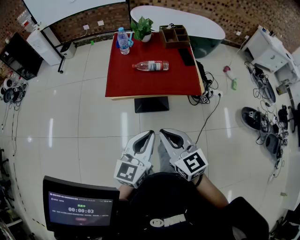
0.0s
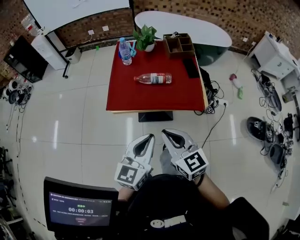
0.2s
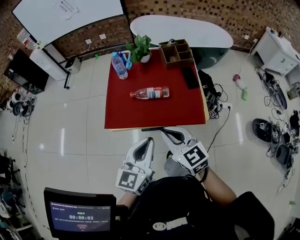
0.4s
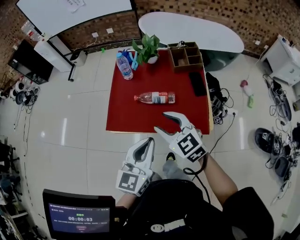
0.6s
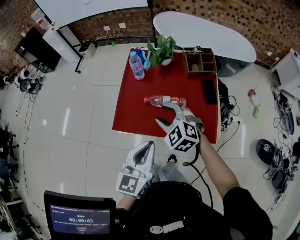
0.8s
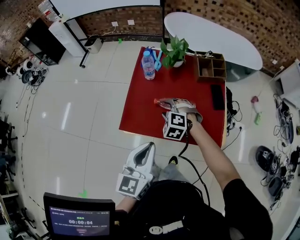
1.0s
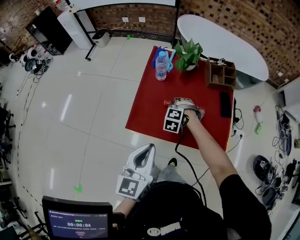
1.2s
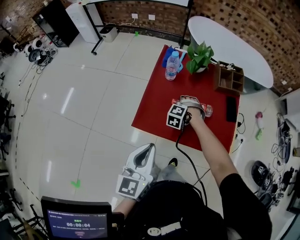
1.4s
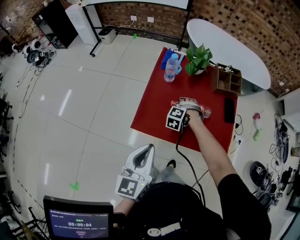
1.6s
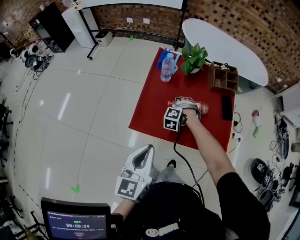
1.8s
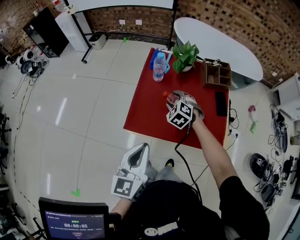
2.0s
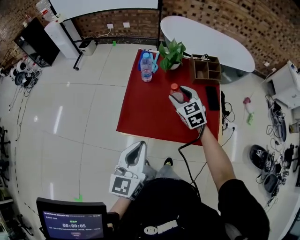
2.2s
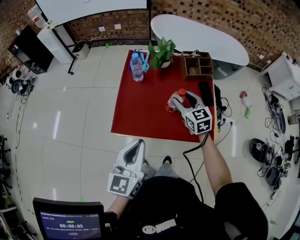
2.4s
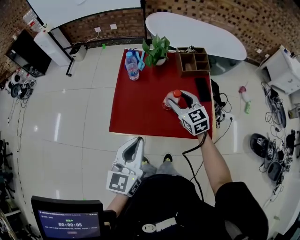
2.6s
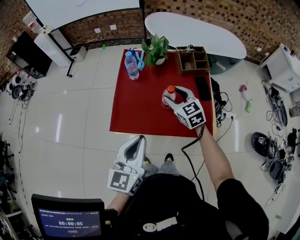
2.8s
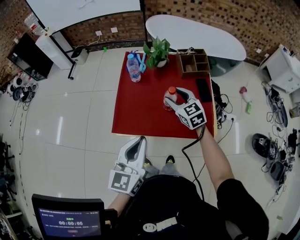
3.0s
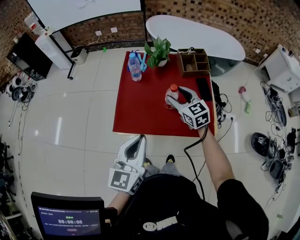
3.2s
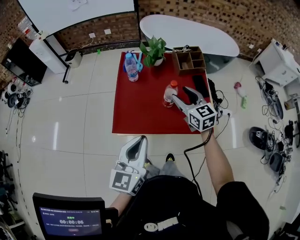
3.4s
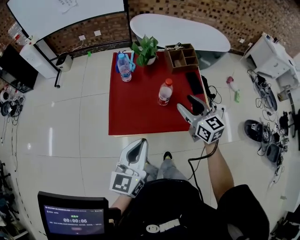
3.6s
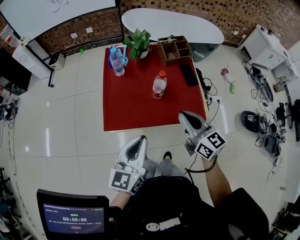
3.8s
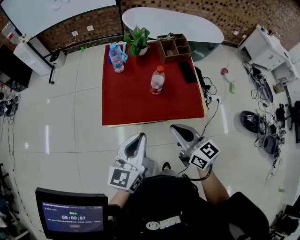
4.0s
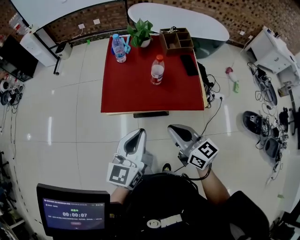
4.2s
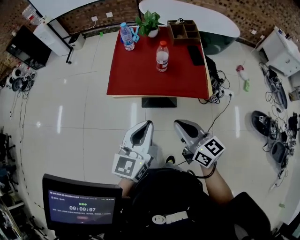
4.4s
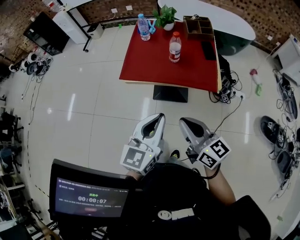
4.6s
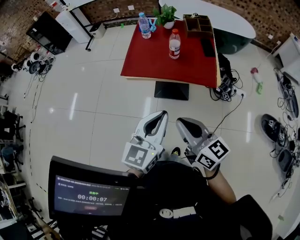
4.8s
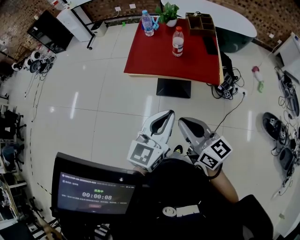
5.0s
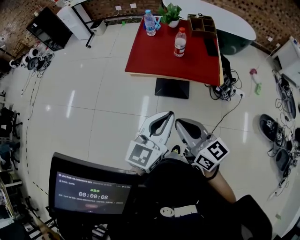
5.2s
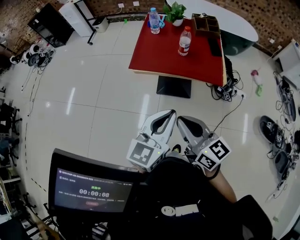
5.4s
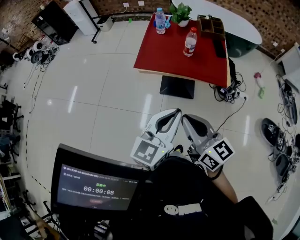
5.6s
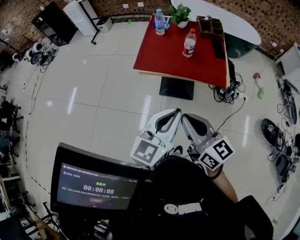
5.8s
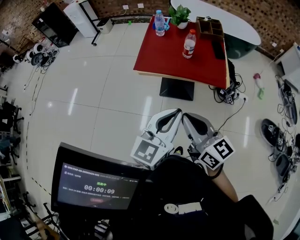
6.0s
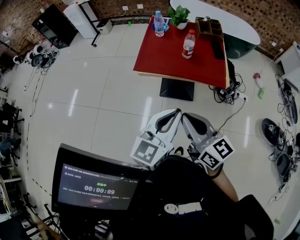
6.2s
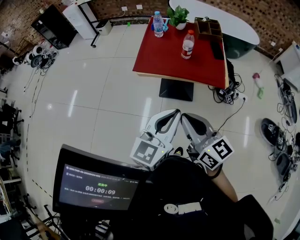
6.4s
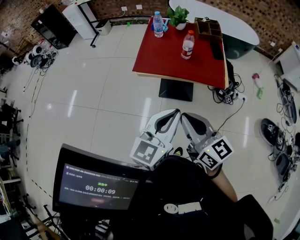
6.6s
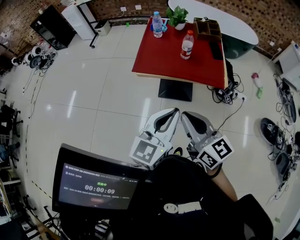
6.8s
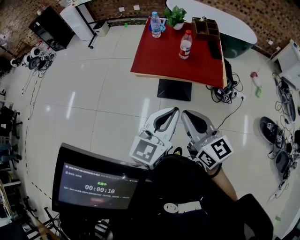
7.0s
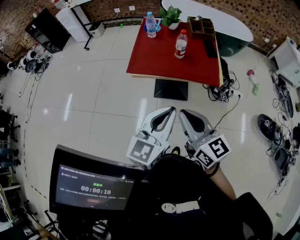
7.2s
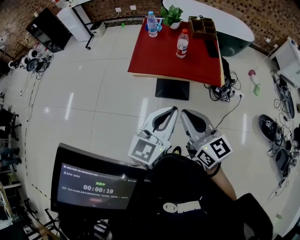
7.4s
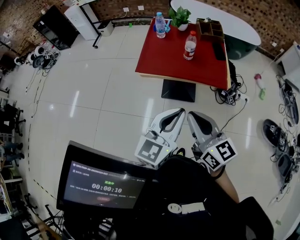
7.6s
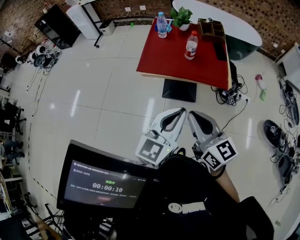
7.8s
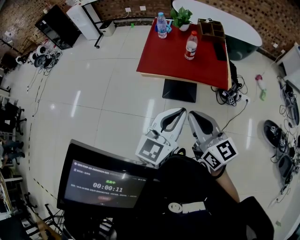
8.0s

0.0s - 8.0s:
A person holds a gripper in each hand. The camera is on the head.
0.0s - 1.6s: The right gripper goes about 50 cm forward and downward, points its fingers roughly 50 degrees further downward, and opens up. The left gripper is displaced forward and to the left by roughly 25 cm, and swivels roughly 20 degrees.
1.6s - 3.2s: The left gripper moves to the right, approximately 5 cm. Meanwhile the right gripper shifts approximately 25 cm upward and to the right, and tilts its fingers about 40 degrees upward.
3.2s - 4.8s: The right gripper goes some 40 cm backward, rotates roughly 30 degrees, and closes. Meanwhile the left gripper is displaced backward by about 25 cm.
4.8s - 6.4s: The right gripper heads to the left, covering about 5 cm.
6.4s - 8.0s: There are only small adjustments of the grippers.

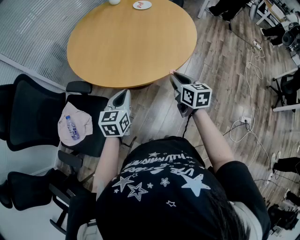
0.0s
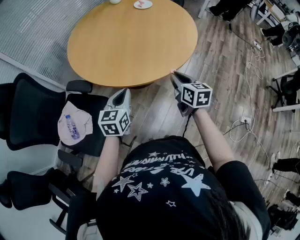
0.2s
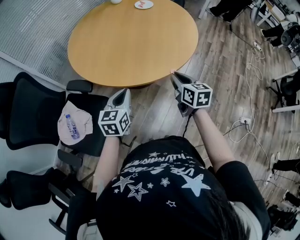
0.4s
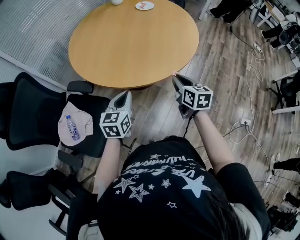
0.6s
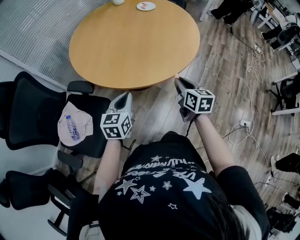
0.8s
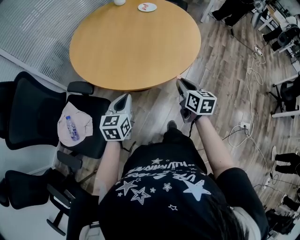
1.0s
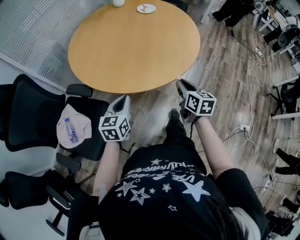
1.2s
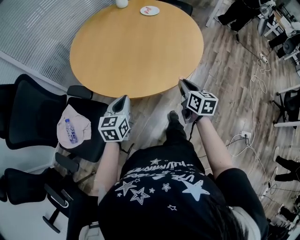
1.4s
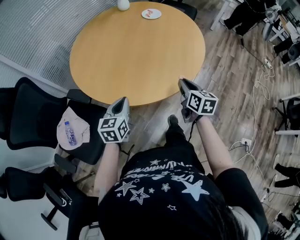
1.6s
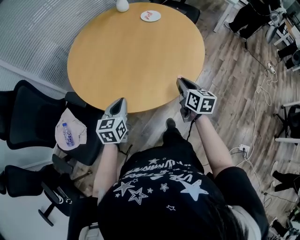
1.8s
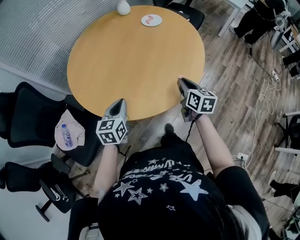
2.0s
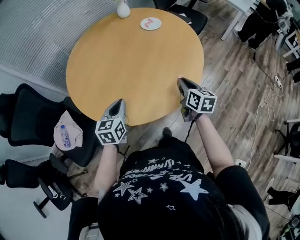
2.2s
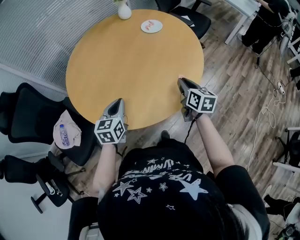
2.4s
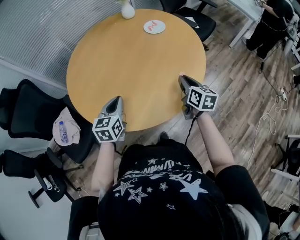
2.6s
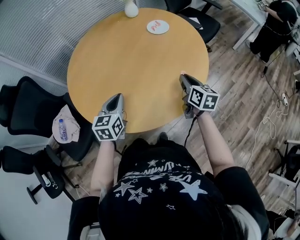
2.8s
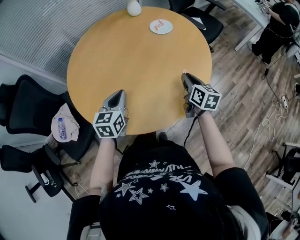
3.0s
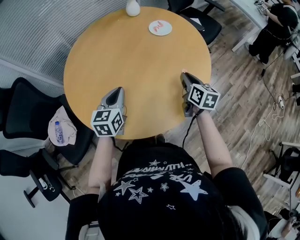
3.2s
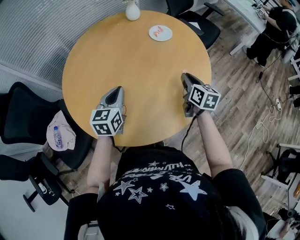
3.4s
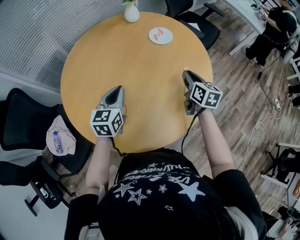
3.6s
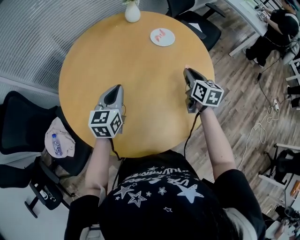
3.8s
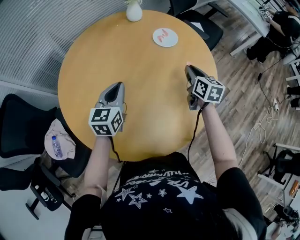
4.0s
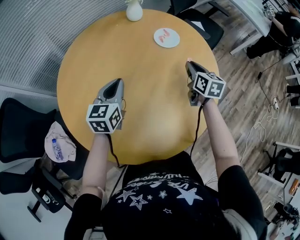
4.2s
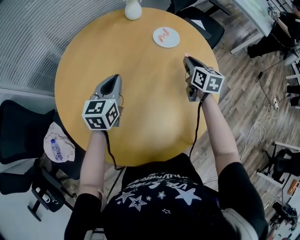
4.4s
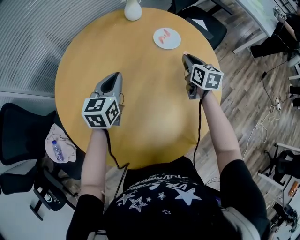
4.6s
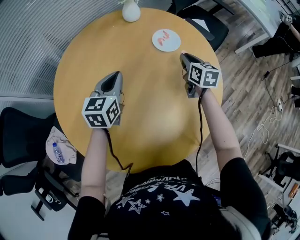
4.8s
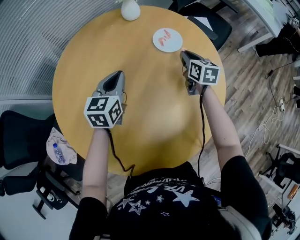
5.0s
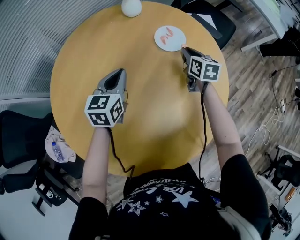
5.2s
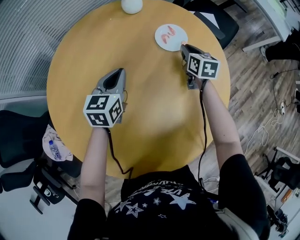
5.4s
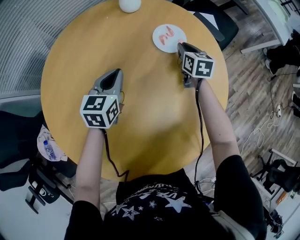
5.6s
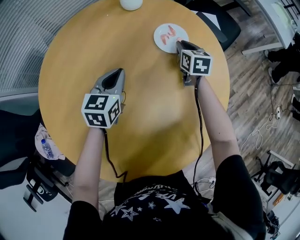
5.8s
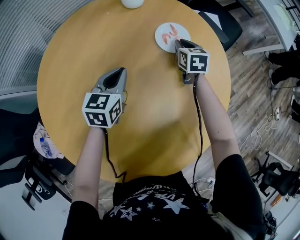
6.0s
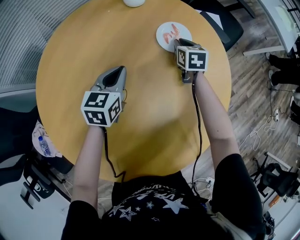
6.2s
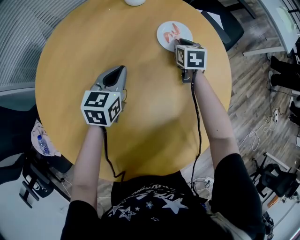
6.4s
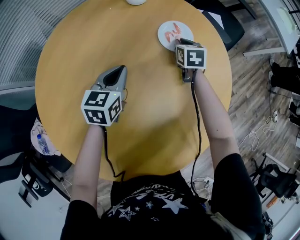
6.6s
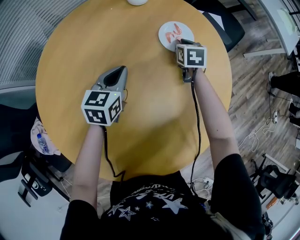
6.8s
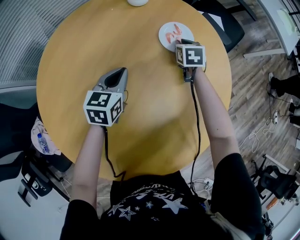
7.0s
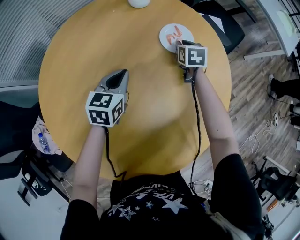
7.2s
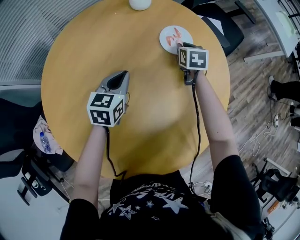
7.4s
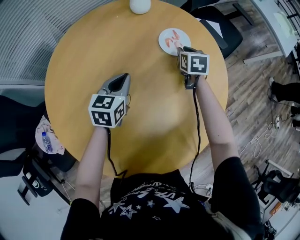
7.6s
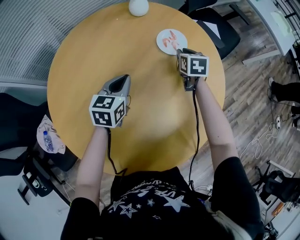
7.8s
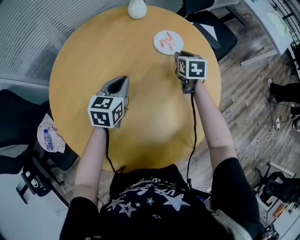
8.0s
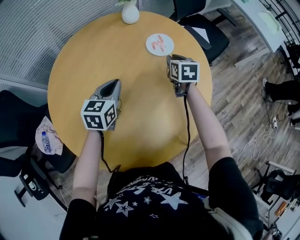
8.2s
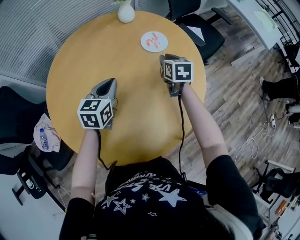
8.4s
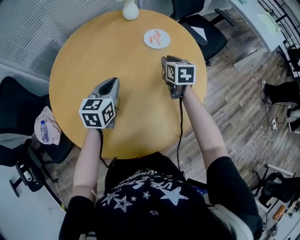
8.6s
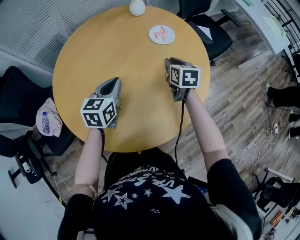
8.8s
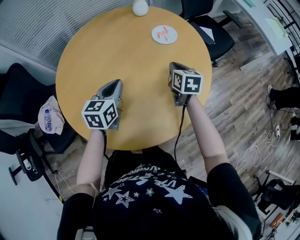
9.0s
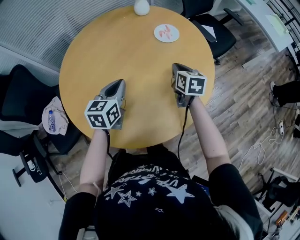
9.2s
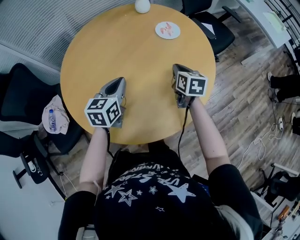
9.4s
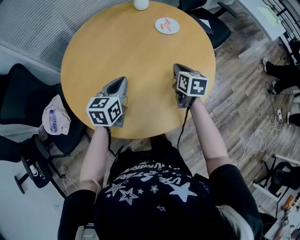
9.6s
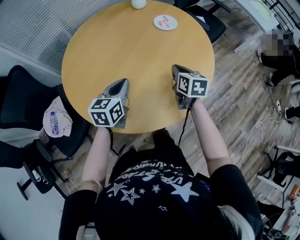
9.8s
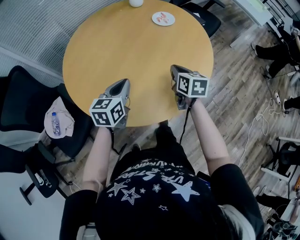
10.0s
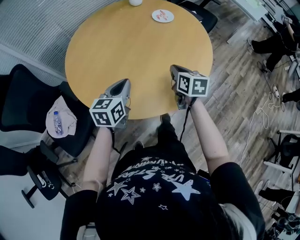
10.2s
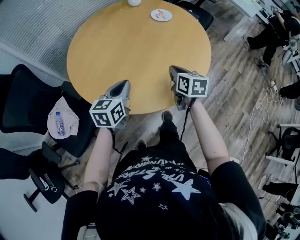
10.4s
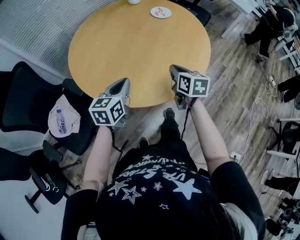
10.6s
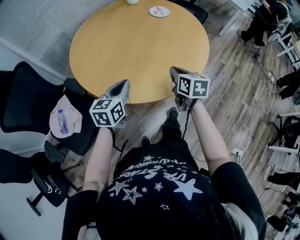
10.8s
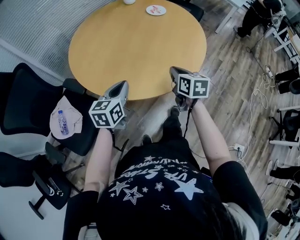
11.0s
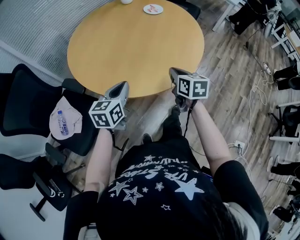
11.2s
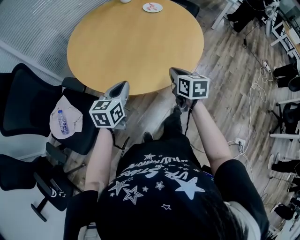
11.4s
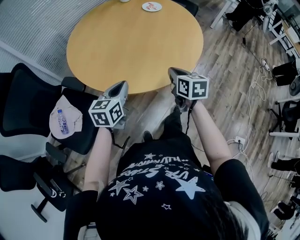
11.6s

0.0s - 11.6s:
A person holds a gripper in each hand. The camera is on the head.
0.0s - 1.4s: The right gripper travels forward by approximately 5 cm.
1.4s - 2.8s: The two grippers go approximately 25 cm forward and to the right.
2.8s - 4.4s: Both grippers move forward, approximately 25 cm.
4.4s - 5.8s: The two grippers go approximately 20 cm forward and downward.
5.8s - 7.2s: The grippers stay close to where they were, moving slightly.
7.2s - 8.8s: Both grippers travel together backward and upward, approximately 25 cm.
8.8s - 10.2s: The right gripper heads backward, covering roughly 25 cm, while the left gripper travels backward and to the left by approximately 20 cm.
10.2s - 11.6s: Both grippers travel together backward, roughly 15 cm.

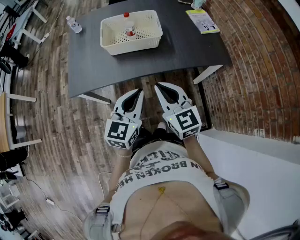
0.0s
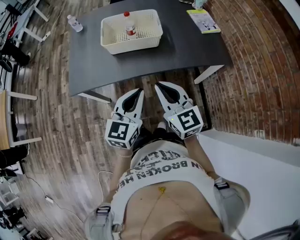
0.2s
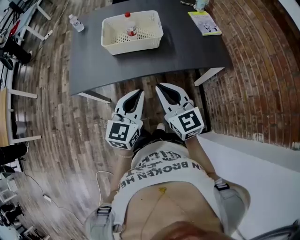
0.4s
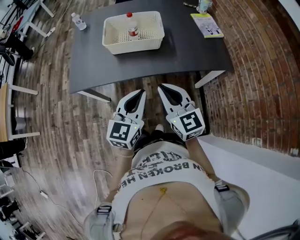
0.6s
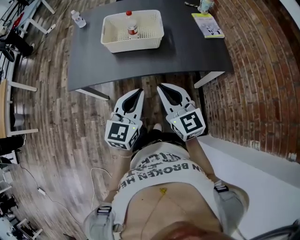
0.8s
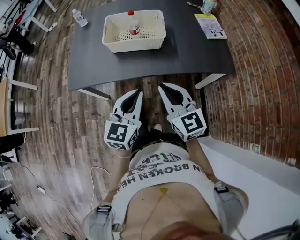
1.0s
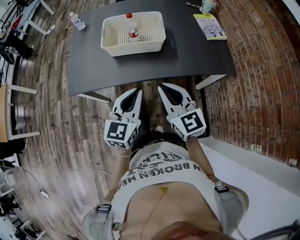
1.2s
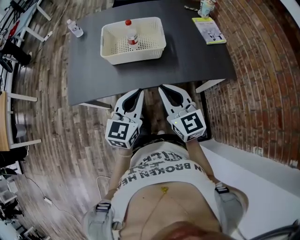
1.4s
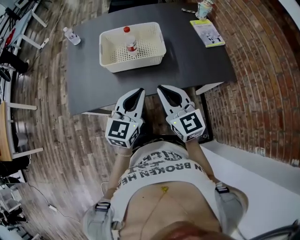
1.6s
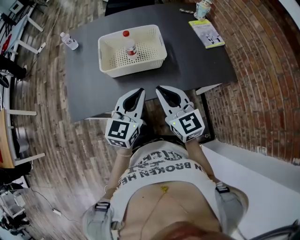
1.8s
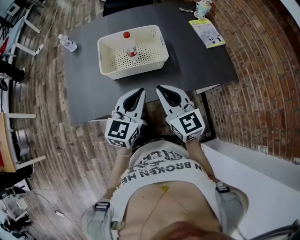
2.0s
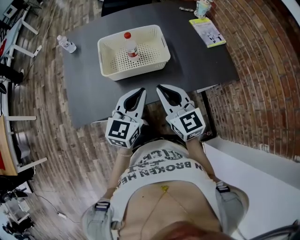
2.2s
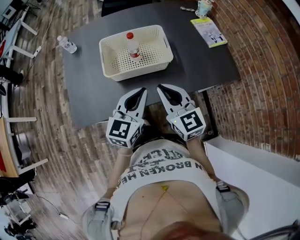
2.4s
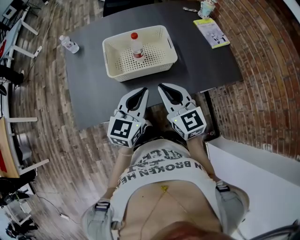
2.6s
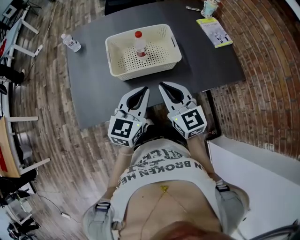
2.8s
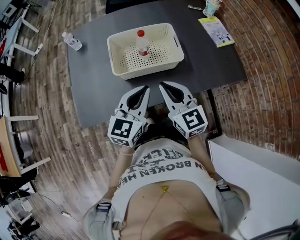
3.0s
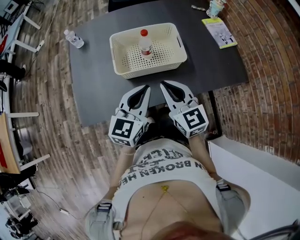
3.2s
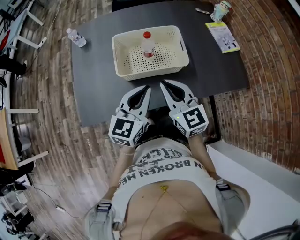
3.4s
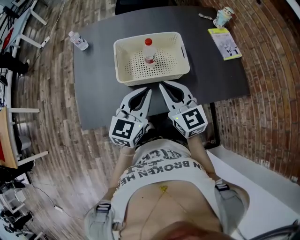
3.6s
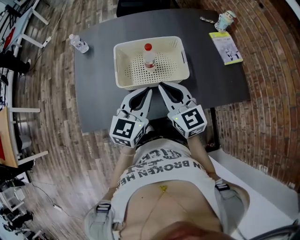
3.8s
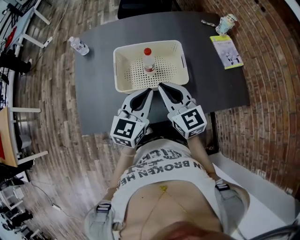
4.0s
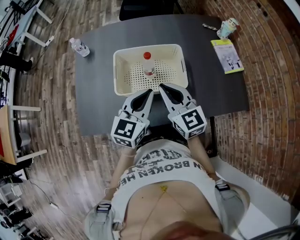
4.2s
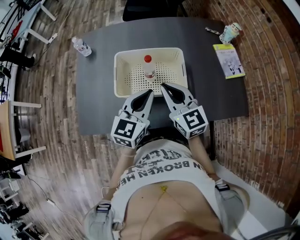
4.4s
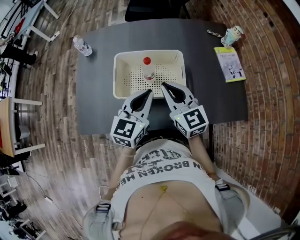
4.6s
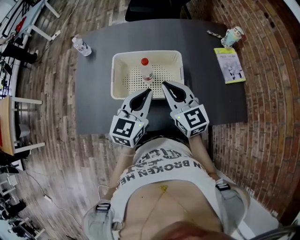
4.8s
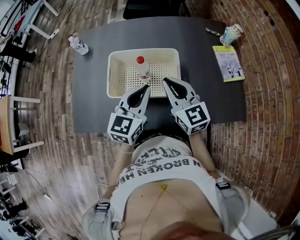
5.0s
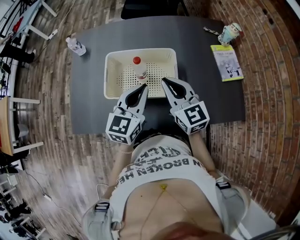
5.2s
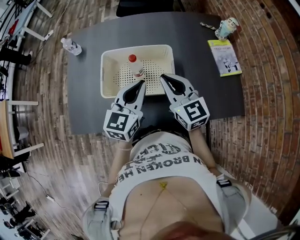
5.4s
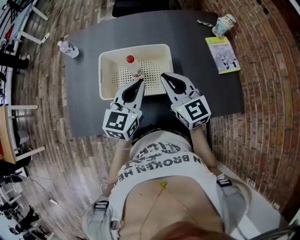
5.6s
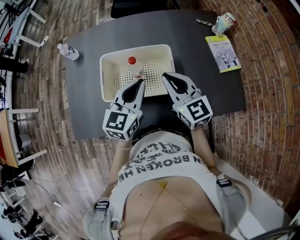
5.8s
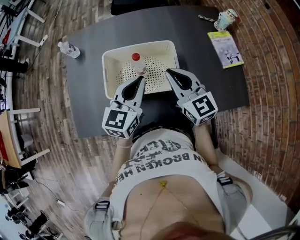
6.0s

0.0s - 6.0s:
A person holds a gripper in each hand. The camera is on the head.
0.0s - 1.6s: The two grippers go roughly 10 cm forward.
1.6s - 3.0s: Both grippers travel together to the left and forward, some 10 cm.
3.0s - 4.4s: Both grippers move forward, roughly 15 cm.
4.4s - 6.0s: The left gripper goes some 5 cm forward; the right gripper moves to the right, about 5 cm.
